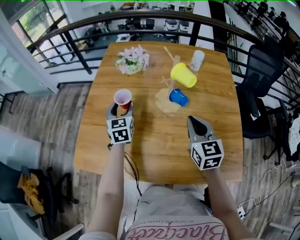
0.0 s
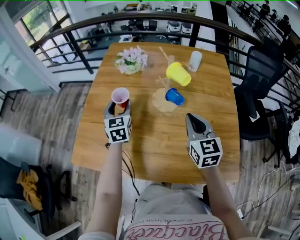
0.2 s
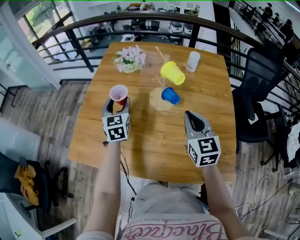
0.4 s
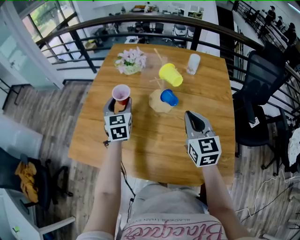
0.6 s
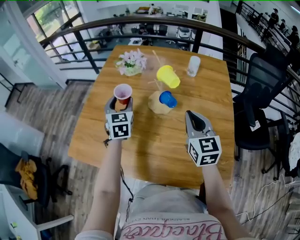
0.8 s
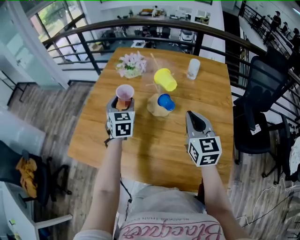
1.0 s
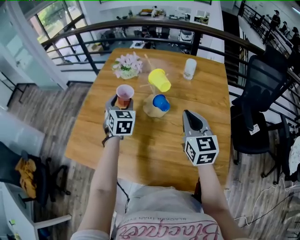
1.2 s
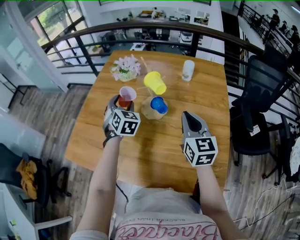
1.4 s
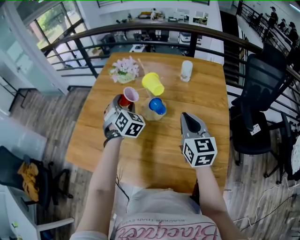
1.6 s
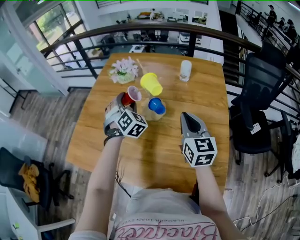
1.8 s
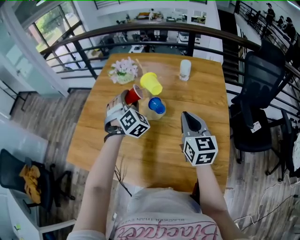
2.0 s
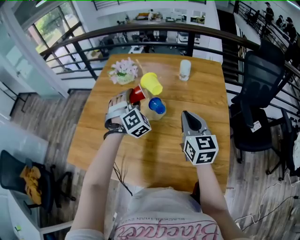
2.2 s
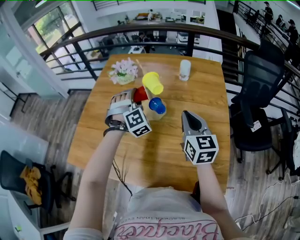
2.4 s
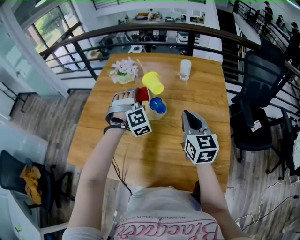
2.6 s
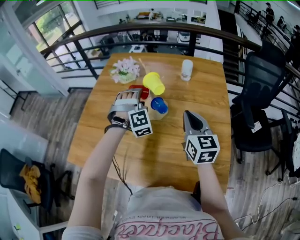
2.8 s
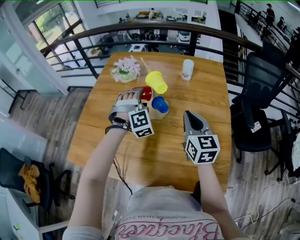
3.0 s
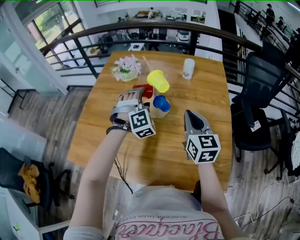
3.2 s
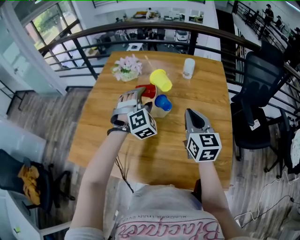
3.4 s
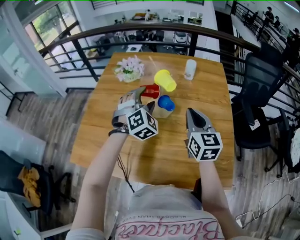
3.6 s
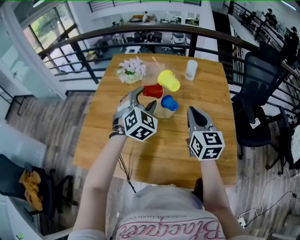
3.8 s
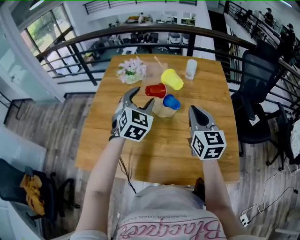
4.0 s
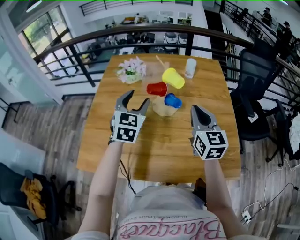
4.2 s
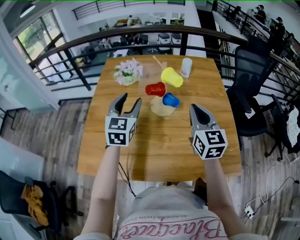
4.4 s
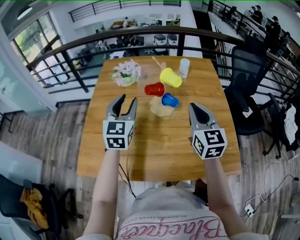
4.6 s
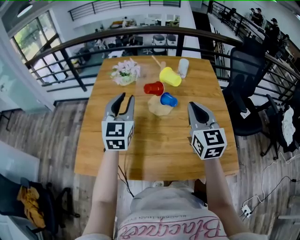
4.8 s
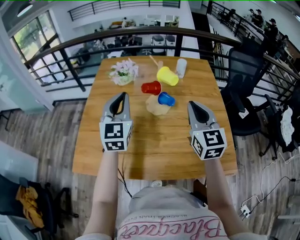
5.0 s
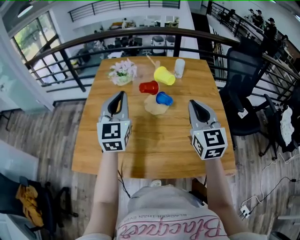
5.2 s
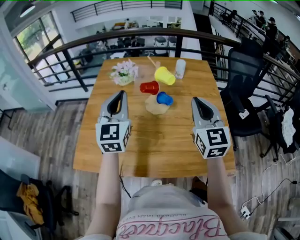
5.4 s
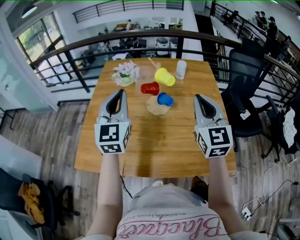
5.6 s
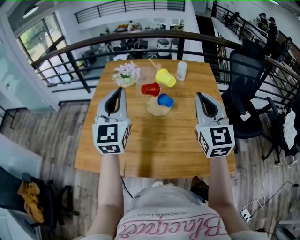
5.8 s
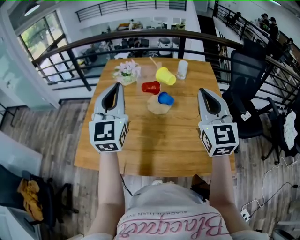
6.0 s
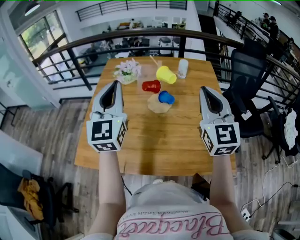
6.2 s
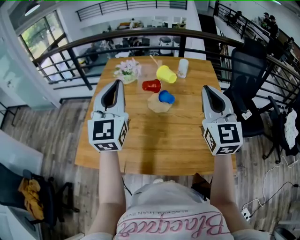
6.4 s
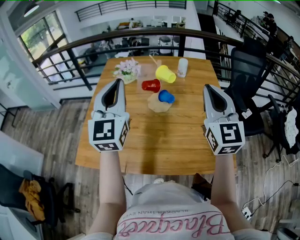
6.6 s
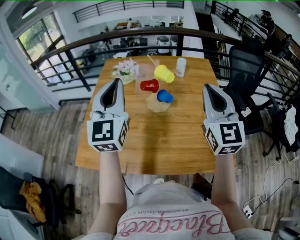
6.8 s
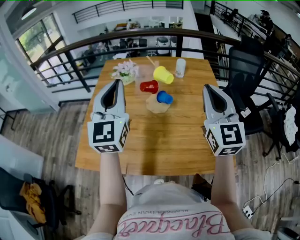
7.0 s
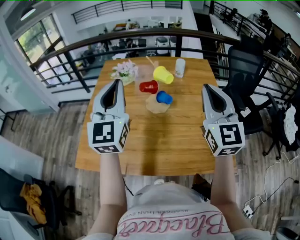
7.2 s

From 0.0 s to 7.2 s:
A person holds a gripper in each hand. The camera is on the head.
From 0.0 s to 1.4 s: The left gripper travels to the right and upward by some 10 cm, and swivels roughly 30 degrees; the right gripper goes roughly 10 cm to the right.
From 1.4 s to 2.8 s: The left gripper heads to the right, covering approximately 10 cm, and twists about 60 degrees clockwise, seen from behind.
From 2.8 s to 4.4 s: The right gripper goes about 5 cm to the left; the left gripper goes about 15 cm to the left, upward and backward, and rolls counterclockwise, seen from behind, by some 70 degrees.
From 4.4 s to 5.8 s: The right gripper shifts about 10 cm upward; the left gripper is displaced upward and backward by some 15 cm, and closes.
From 5.8 s to 7.2 s: The grippers stay close to where they were, moving slightly.

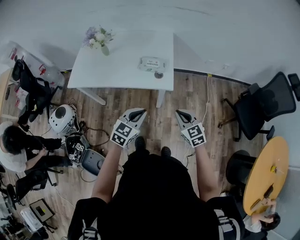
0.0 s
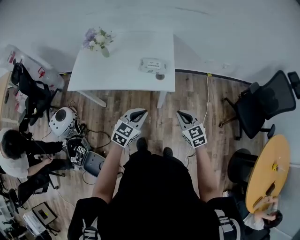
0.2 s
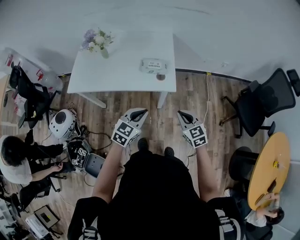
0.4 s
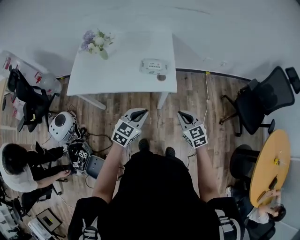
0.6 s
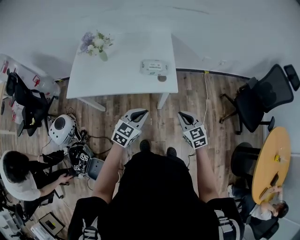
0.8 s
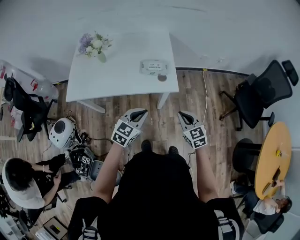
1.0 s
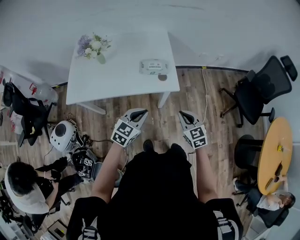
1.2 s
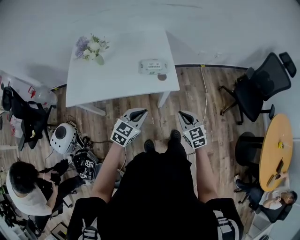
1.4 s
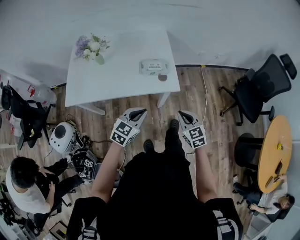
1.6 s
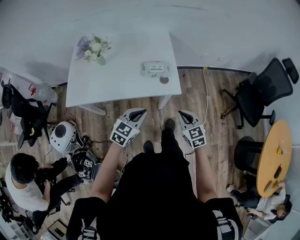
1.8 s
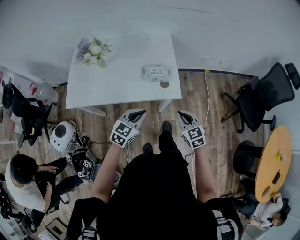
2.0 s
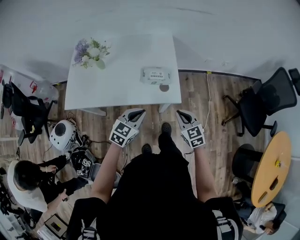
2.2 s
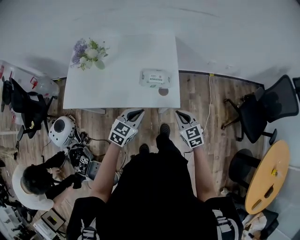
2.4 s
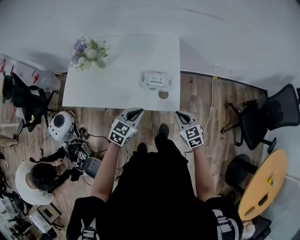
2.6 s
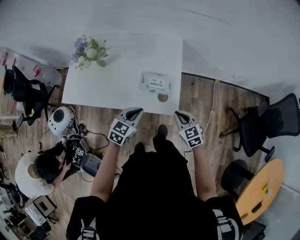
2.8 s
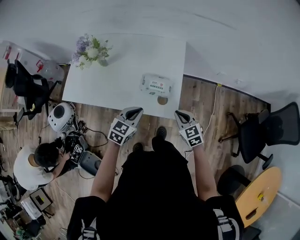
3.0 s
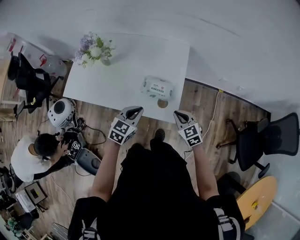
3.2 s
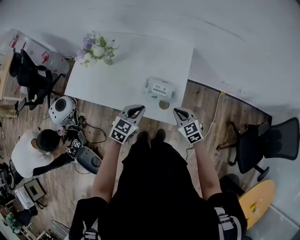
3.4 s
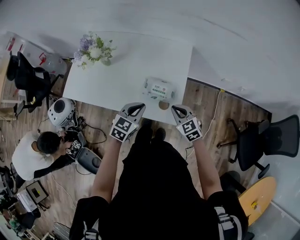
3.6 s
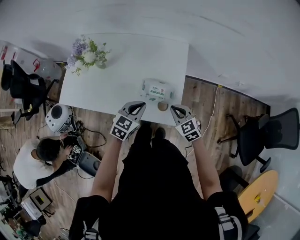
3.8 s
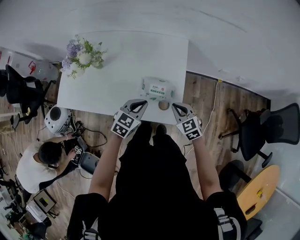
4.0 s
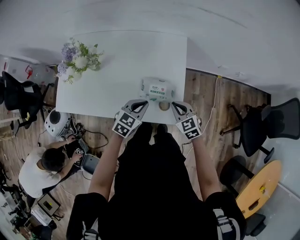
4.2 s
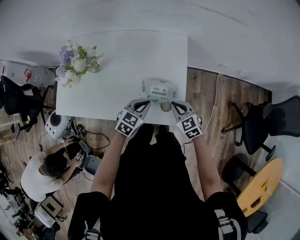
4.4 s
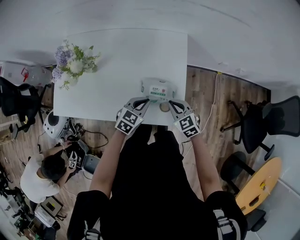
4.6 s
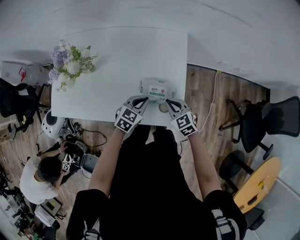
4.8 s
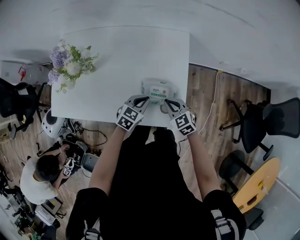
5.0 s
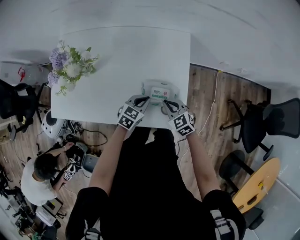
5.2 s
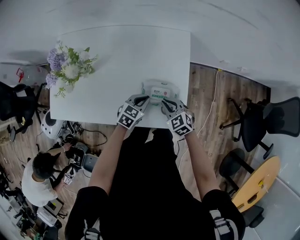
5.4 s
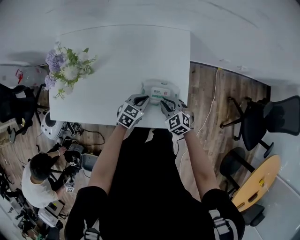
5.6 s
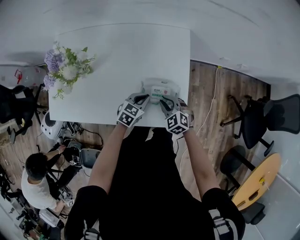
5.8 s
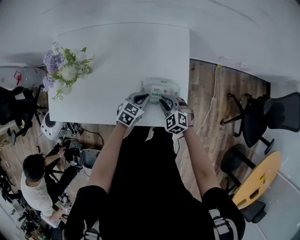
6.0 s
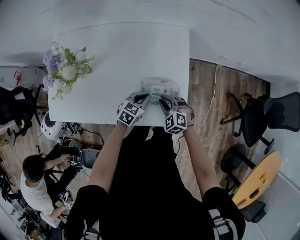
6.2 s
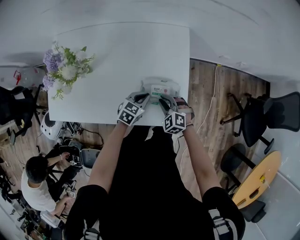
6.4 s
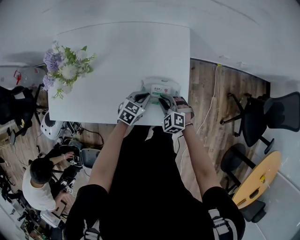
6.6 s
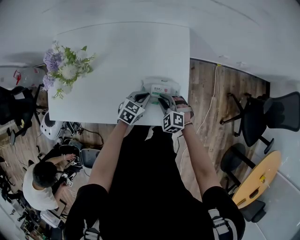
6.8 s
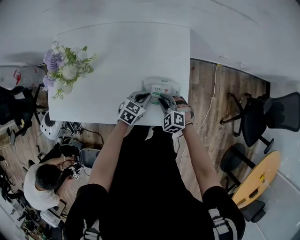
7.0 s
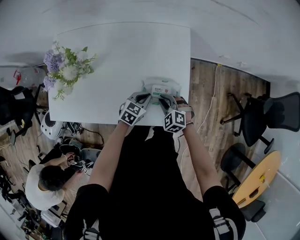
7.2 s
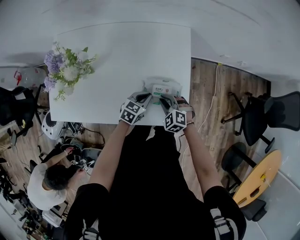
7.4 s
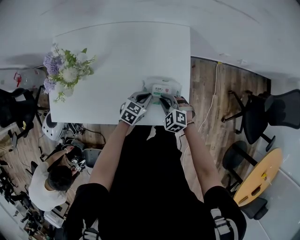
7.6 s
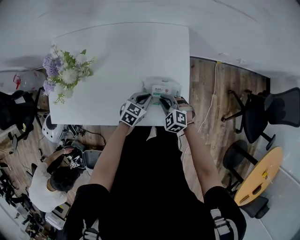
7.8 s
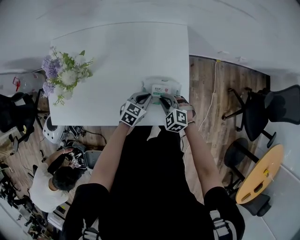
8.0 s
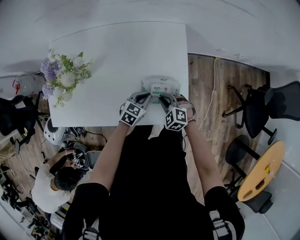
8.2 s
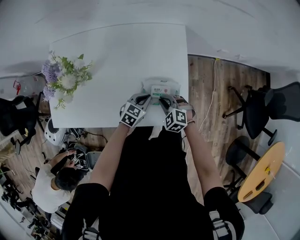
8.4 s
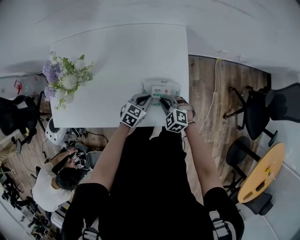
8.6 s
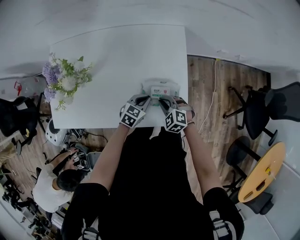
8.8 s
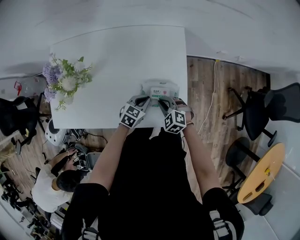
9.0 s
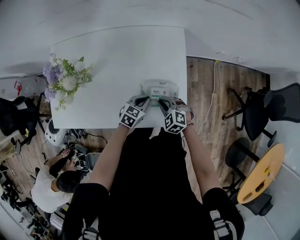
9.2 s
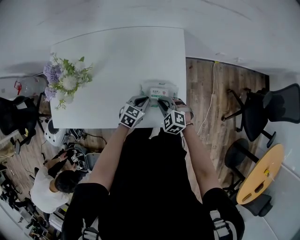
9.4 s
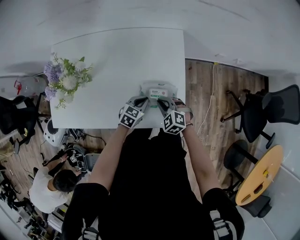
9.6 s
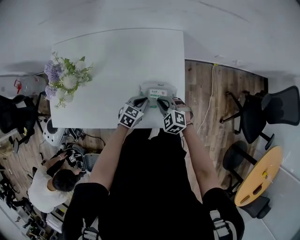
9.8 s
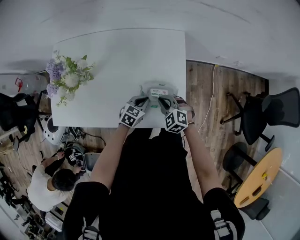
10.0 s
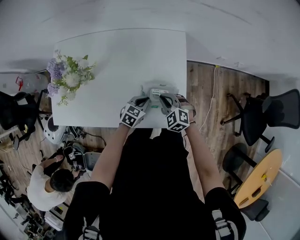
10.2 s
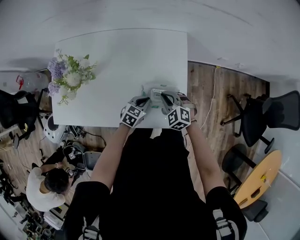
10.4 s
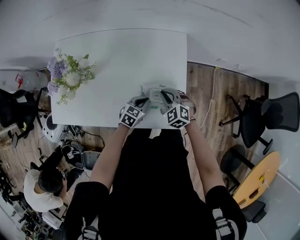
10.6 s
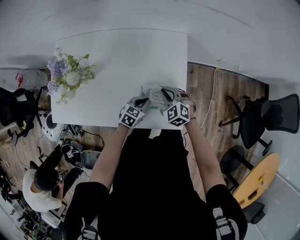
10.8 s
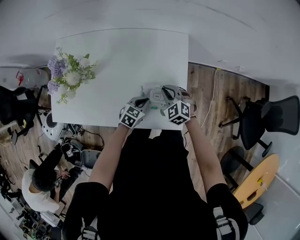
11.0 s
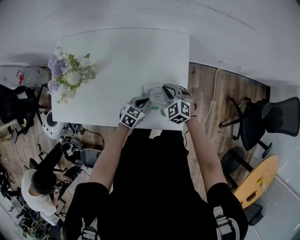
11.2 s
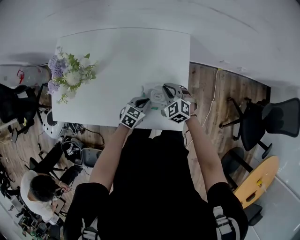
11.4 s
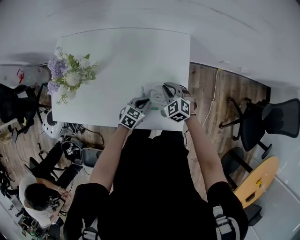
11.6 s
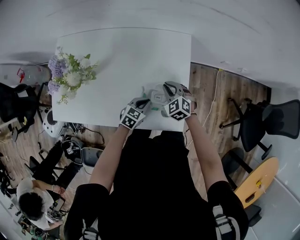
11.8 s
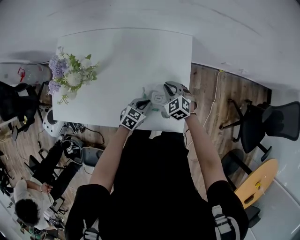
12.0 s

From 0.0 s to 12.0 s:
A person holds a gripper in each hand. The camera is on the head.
From 0.0 s to 1.6 s: The right gripper shifts approximately 10 cm to the left; the left gripper travels to the left and forward by approximately 15 cm.
From 1.6 s to 3.0 s: Both grippers move forward, some 25 cm. The left gripper turns by about 20 degrees; the right gripper swivels approximately 20 degrees.
From 3.0 s to 4.4 s: The left gripper moves forward and downward, some 15 cm. Meanwhile the right gripper travels forward, downward and to the left by approximately 15 cm.
From 4.4 s to 6.0 s: The left gripper goes about 10 cm downward and forward, while the right gripper is displaced downward and to the left by approximately 10 cm, and rotates about 20 degrees.
From 6.0 s to 7.6 s: The grippers move only a little.
From 7.6 s to 9.0 s: Both grippers stay about where they are.
From 9.0 s to 10.4 s: The right gripper goes some 5 cm upward.
From 10.4 s to 12.0 s: The right gripper goes some 5 cm forward.

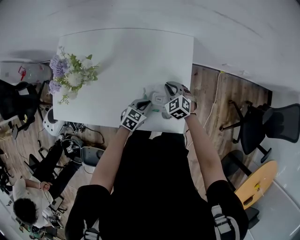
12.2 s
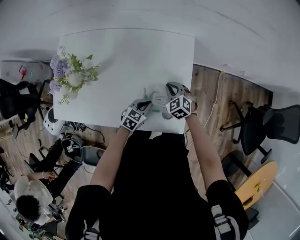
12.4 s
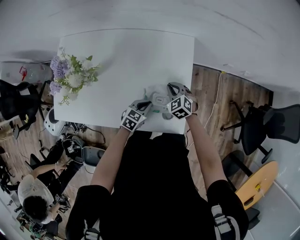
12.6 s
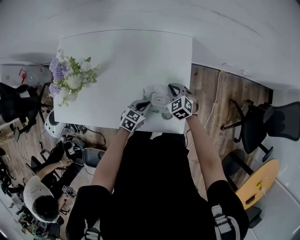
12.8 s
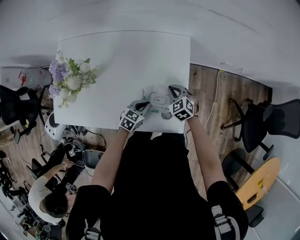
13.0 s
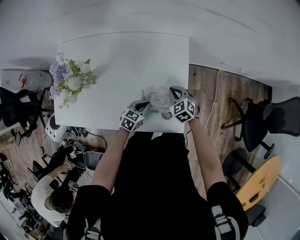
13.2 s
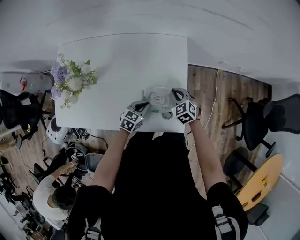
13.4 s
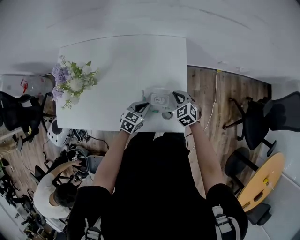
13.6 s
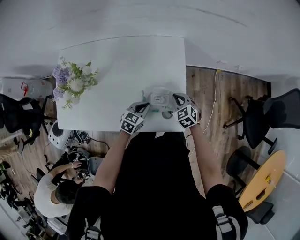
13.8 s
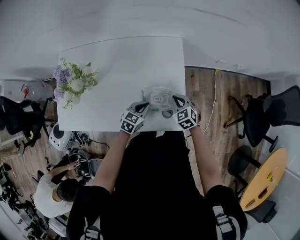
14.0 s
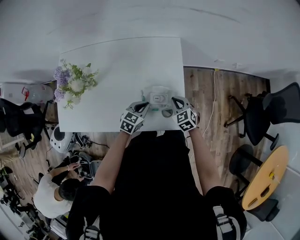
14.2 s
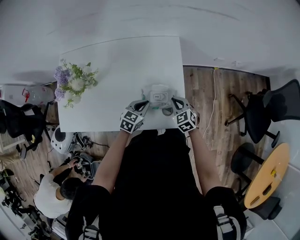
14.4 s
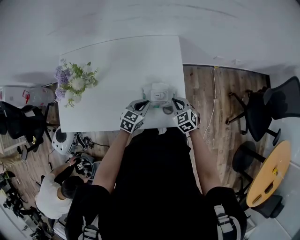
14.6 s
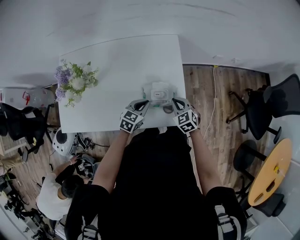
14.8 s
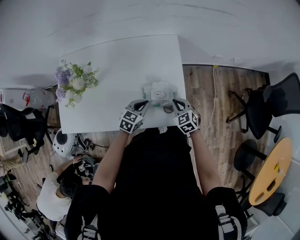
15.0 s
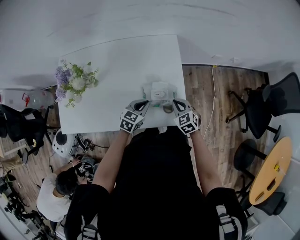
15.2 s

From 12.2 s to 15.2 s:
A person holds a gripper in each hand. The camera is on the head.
From 12.2 s to 13.8 s: The right gripper is displaced to the right and backward by about 10 cm.
From 13.8 s to 15.2 s: The right gripper shifts approximately 10 cm backward.

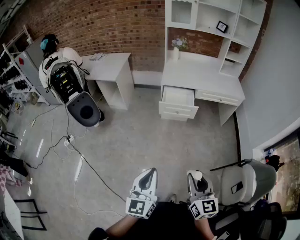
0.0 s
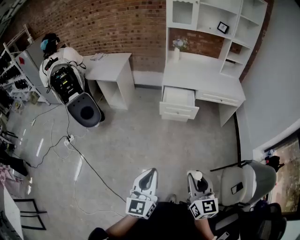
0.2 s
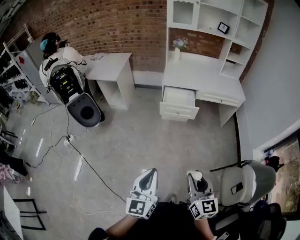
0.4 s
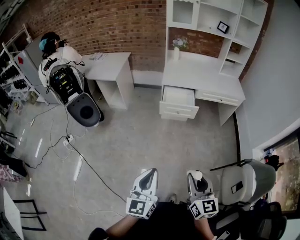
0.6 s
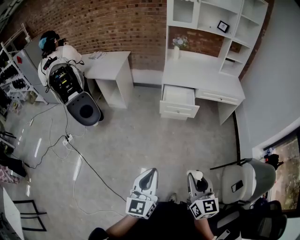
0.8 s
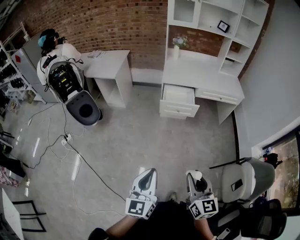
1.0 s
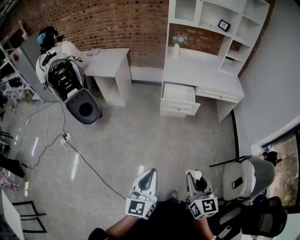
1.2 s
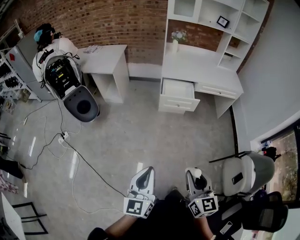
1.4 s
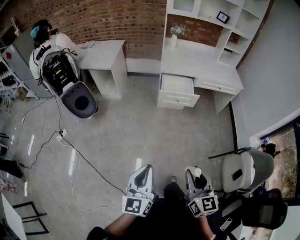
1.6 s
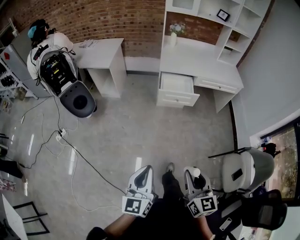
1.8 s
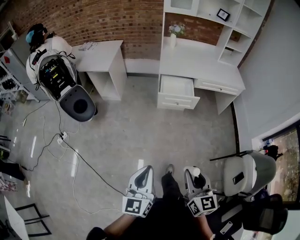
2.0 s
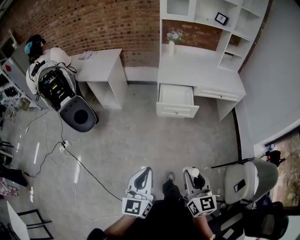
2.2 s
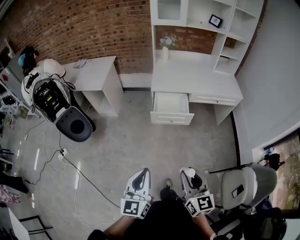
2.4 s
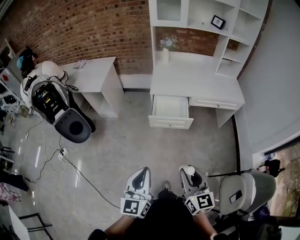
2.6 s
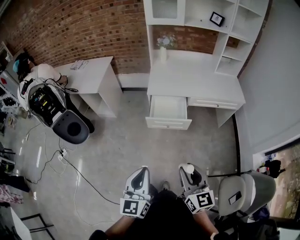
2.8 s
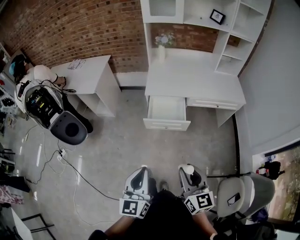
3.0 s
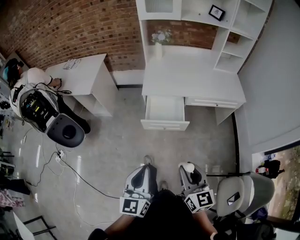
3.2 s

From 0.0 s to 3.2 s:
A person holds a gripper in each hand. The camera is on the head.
From 0.0 s to 1.6 s: The two grippers go roughly 10 cm to the left.
From 1.6 s to 3.2 s: Both grippers move forward and to the right, some 35 cm.
